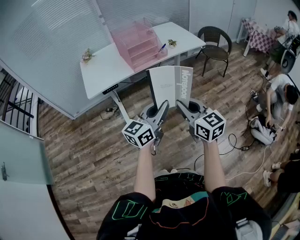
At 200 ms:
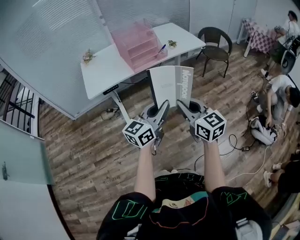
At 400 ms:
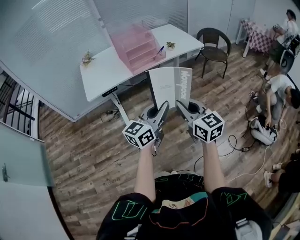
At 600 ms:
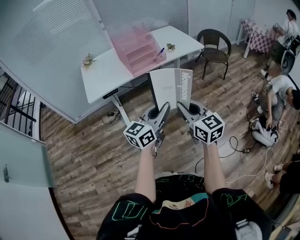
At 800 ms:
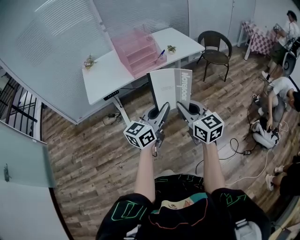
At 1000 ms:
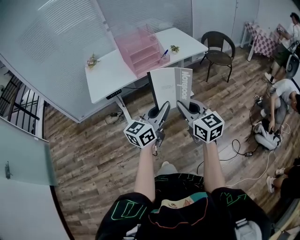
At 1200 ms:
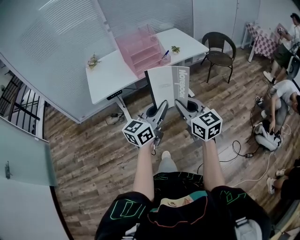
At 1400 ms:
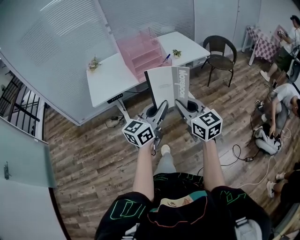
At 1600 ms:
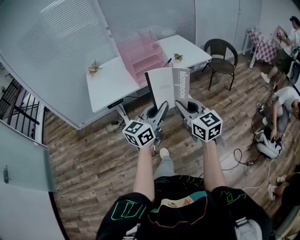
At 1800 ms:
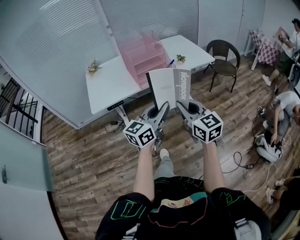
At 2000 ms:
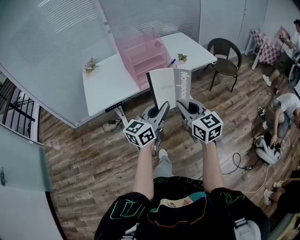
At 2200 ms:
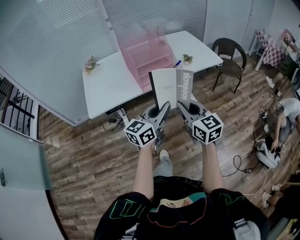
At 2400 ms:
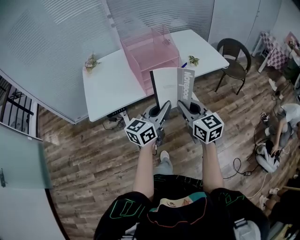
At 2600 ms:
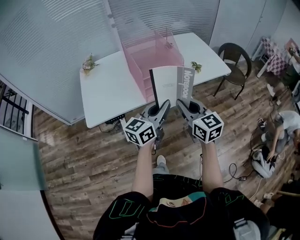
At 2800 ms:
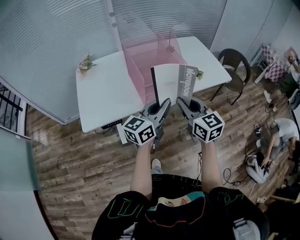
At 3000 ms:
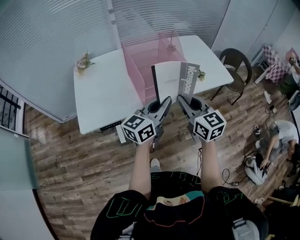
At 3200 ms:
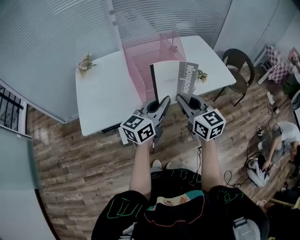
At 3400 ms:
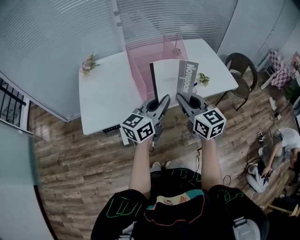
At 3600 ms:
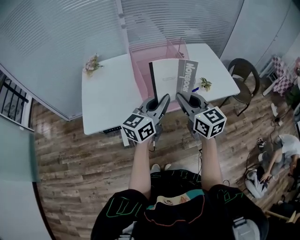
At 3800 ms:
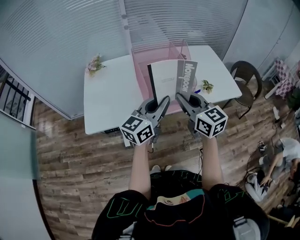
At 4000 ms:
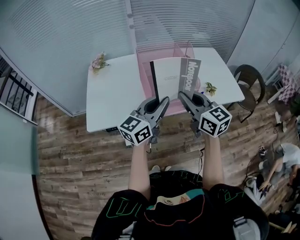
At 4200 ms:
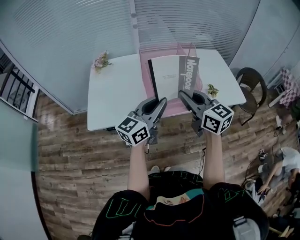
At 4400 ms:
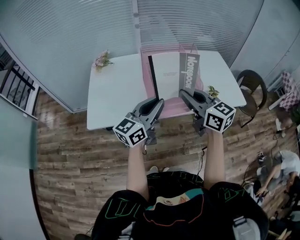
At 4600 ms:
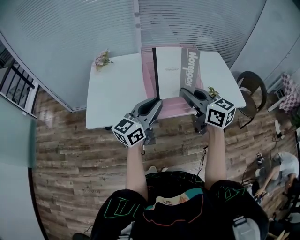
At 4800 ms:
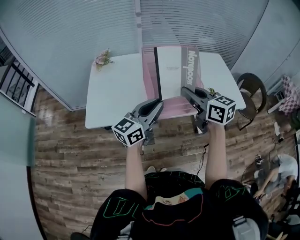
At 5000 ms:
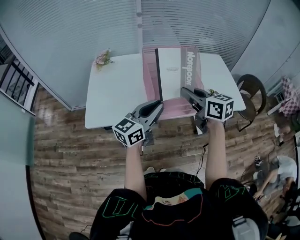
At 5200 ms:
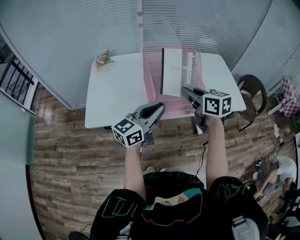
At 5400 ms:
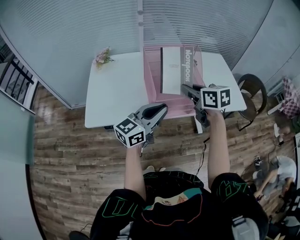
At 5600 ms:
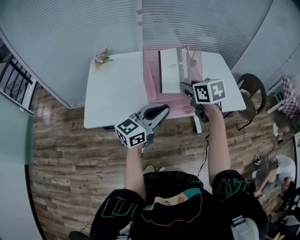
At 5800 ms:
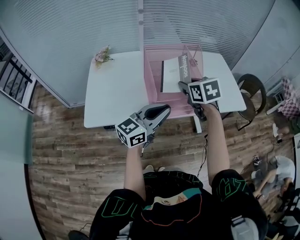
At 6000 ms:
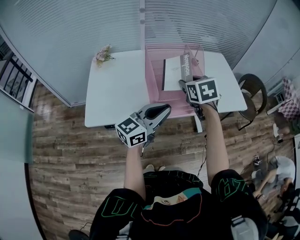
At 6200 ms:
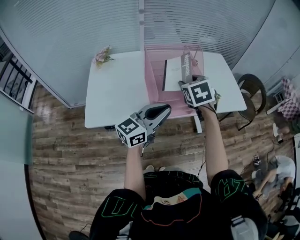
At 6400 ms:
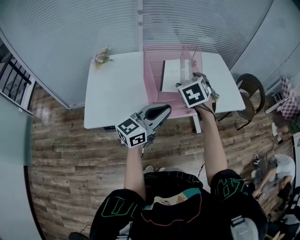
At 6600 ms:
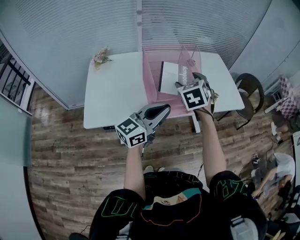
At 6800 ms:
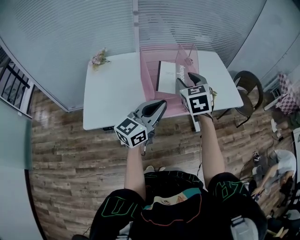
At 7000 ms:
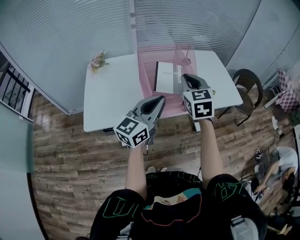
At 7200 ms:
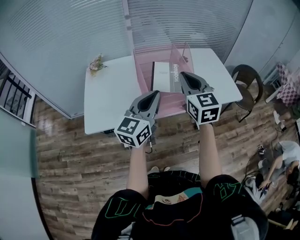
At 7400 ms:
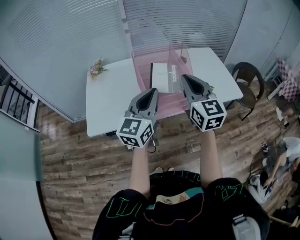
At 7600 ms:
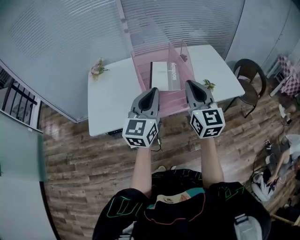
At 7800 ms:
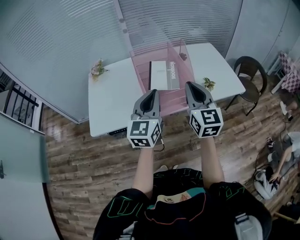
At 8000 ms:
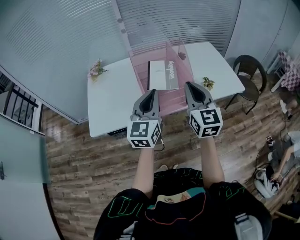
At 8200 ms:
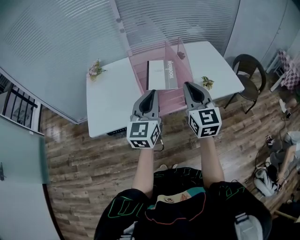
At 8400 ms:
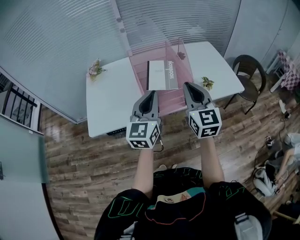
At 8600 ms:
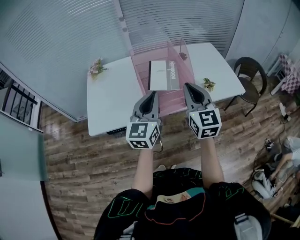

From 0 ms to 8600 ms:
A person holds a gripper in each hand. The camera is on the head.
From 0 ms to 1400 ms: The grippers stay close to where they were, moving slightly.
From 1400 ms to 2800 ms: The two grippers go some 35 cm forward.
From 2800 ms to 4400 ms: The left gripper shifts about 10 cm forward and to the left, while the right gripper goes about 10 cm forward and upward, and turns by some 20 degrees.
From 4400 ms to 5800 ms: The right gripper heads forward and downward, covering approximately 10 cm, and tilts its fingers about 30 degrees downward.
From 5800 ms to 7200 ms: The right gripper moves upward, approximately 10 cm, tilts its fingers about 30 degrees upward, and closes up. The left gripper moves upward, about 5 cm.
From 7200 ms to 8600 ms: The right gripper changes place by some 5 cm.

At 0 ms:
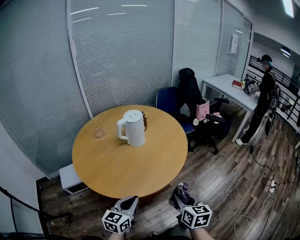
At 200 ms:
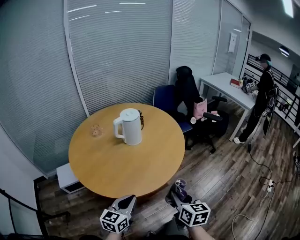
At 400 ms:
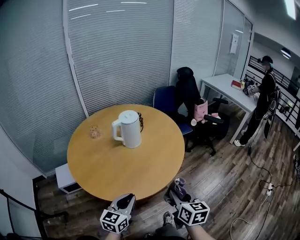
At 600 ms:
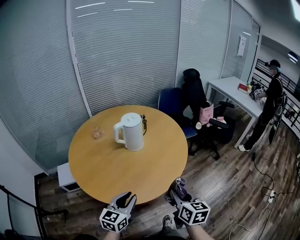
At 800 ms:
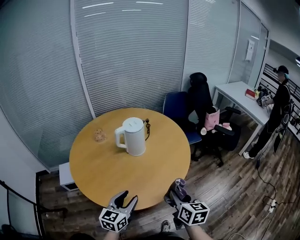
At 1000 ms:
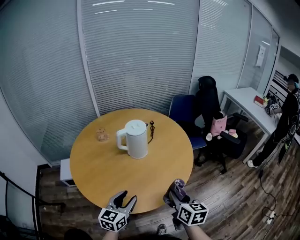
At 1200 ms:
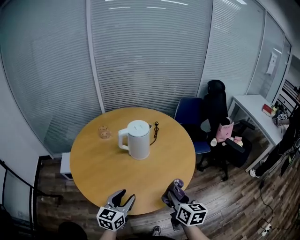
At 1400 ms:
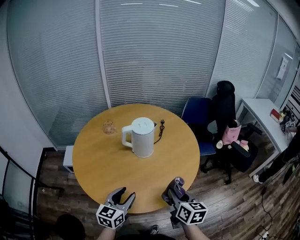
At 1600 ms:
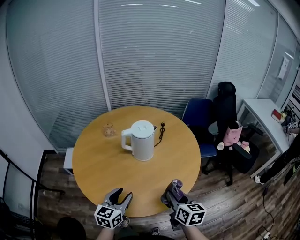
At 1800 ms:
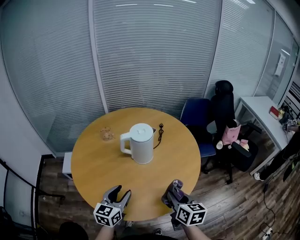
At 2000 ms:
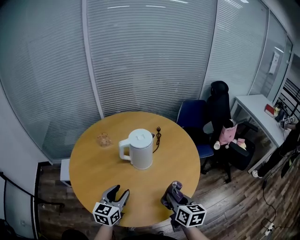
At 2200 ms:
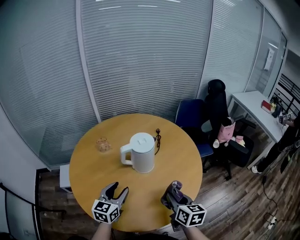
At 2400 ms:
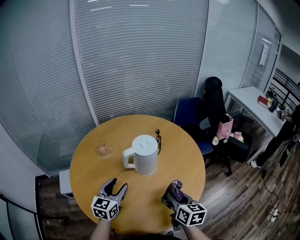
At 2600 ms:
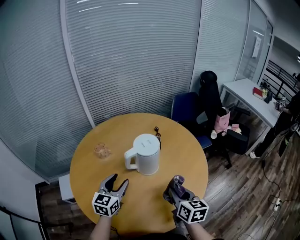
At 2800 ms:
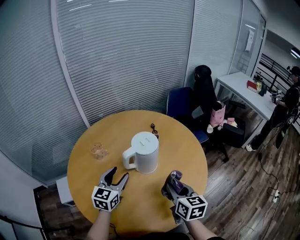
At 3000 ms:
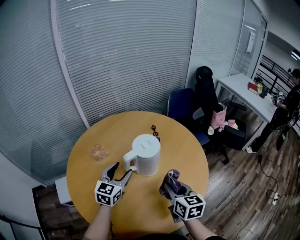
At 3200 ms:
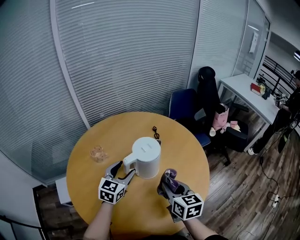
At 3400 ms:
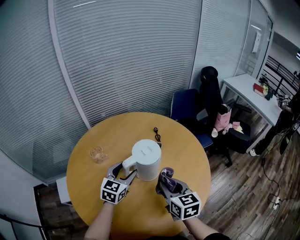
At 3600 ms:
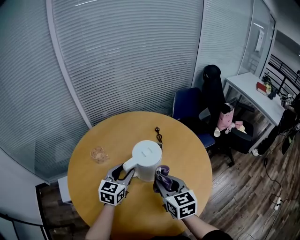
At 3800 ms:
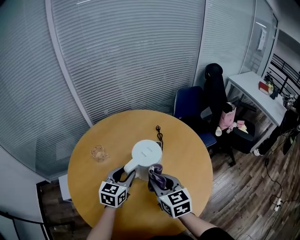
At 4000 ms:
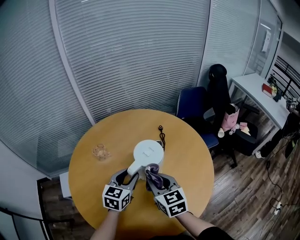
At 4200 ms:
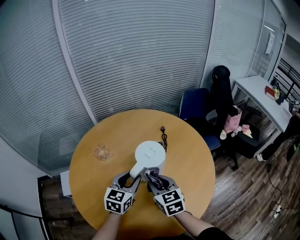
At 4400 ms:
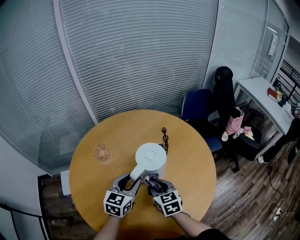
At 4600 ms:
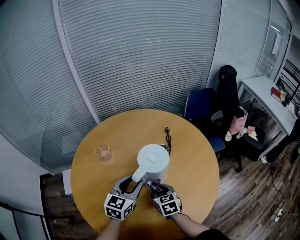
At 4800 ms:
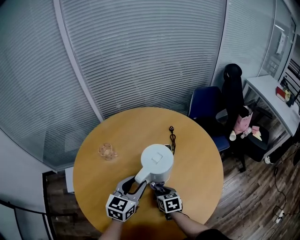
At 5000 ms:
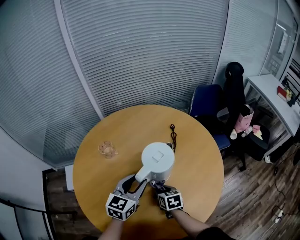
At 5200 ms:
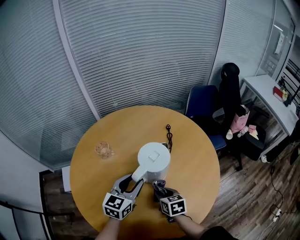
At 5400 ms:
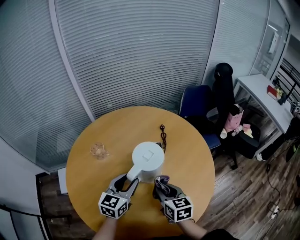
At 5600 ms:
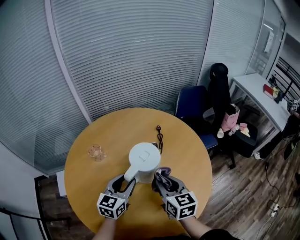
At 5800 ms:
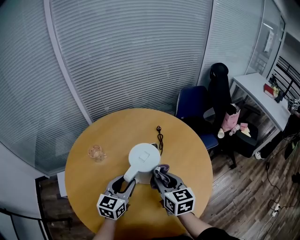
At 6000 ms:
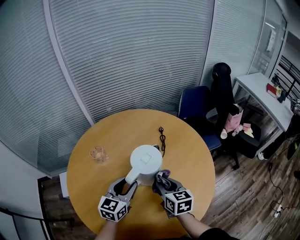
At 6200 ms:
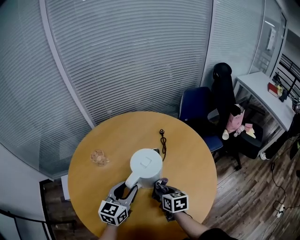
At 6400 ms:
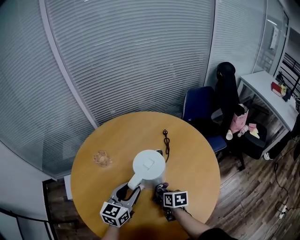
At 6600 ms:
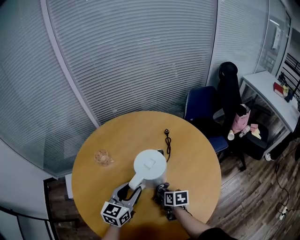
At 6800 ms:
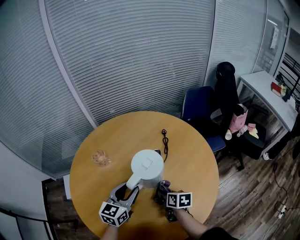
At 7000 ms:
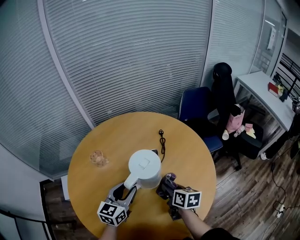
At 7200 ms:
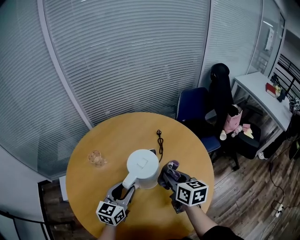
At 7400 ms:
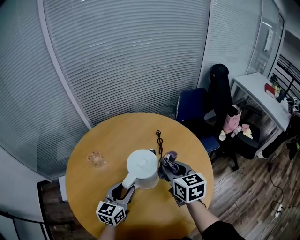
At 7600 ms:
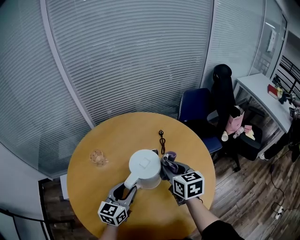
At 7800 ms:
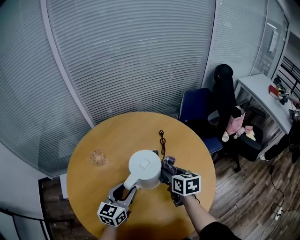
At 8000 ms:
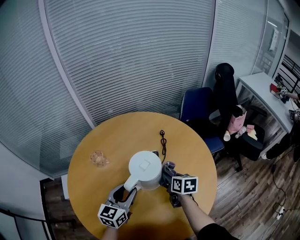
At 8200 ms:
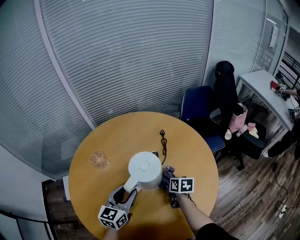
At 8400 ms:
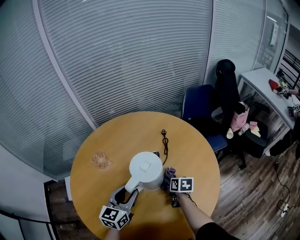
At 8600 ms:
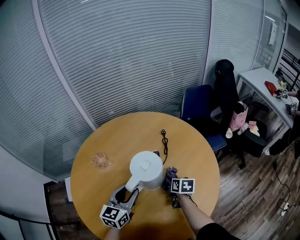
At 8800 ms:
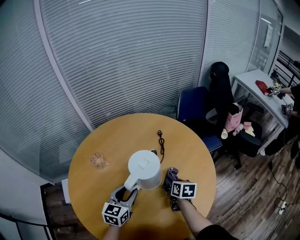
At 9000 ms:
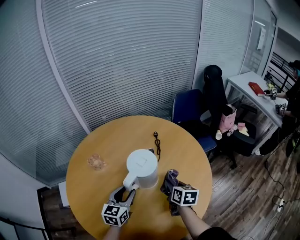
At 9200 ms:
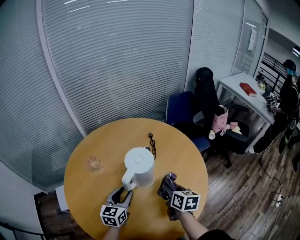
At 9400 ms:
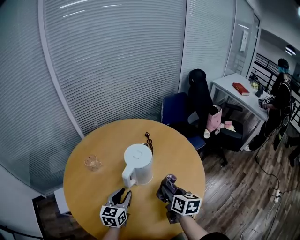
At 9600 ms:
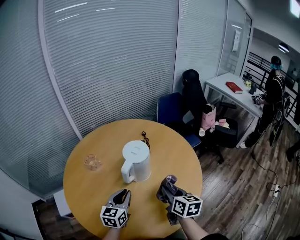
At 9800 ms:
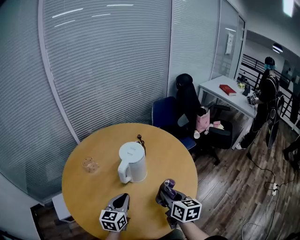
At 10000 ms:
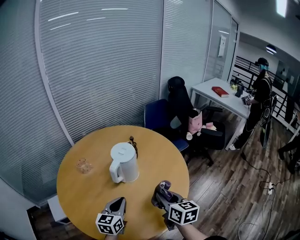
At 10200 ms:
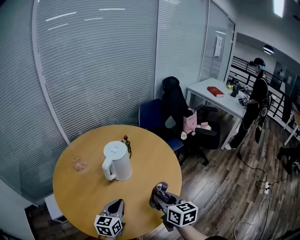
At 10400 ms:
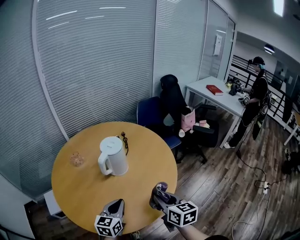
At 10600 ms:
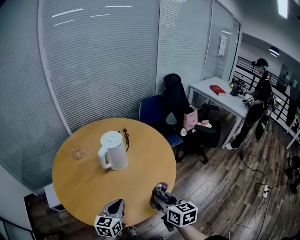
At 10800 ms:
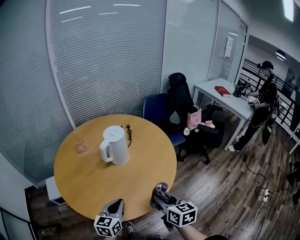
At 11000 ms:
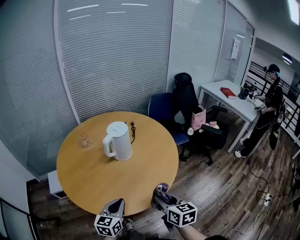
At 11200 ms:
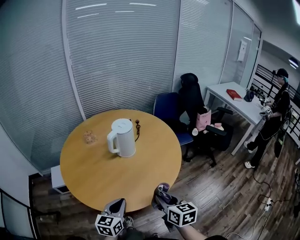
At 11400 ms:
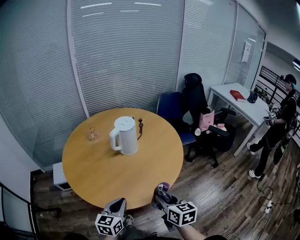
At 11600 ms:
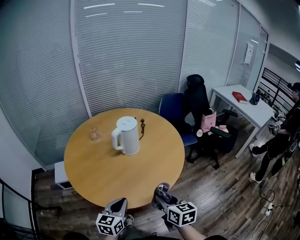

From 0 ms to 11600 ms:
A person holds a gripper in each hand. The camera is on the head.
From 0 ms to 1400 ms: Both grippers move forward, approximately 20 cm. The right gripper changes its angle by about 20 degrees, while the left gripper turns by about 20 degrees, and opens up.
From 1400 ms to 2800 ms: The left gripper is displaced forward and to the left by approximately 25 cm. The right gripper is displaced to the left and forward by about 15 cm.
From 2800 ms to 4400 ms: The right gripper travels forward, to the left and downward by approximately 15 cm, and rotates about 30 degrees. Meanwhile the left gripper travels to the right by roughly 5 cm.
From 4400 ms to 5800 ms: The right gripper goes roughly 5 cm to the right, and reaches approximately 10 cm downward, then returns.
From 5800 ms to 7200 ms: The right gripper goes about 5 cm to the right, and moves about 20 cm downward and comes back.
From 7200 ms to 8800 ms: The right gripper goes up and down, approximately 25 cm each way, reversing 2 times, and rotates some 20 degrees.
From 8800 ms to 10200 ms: The right gripper heads backward and upward, covering approximately 30 cm, and swivels about 20 degrees. Meanwhile the left gripper shifts some 15 cm backward, and closes its fingers.
From 10200 ms to 11600 ms: Both grippers move backward, approximately 15 cm.

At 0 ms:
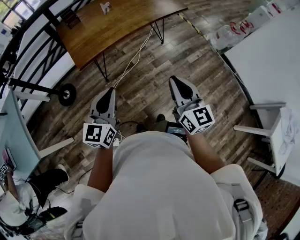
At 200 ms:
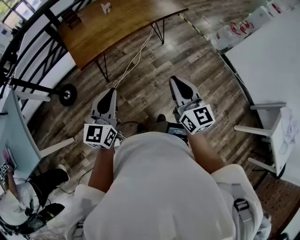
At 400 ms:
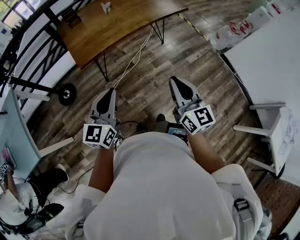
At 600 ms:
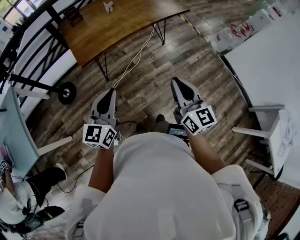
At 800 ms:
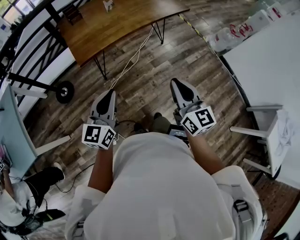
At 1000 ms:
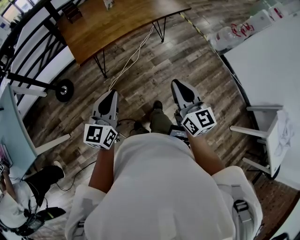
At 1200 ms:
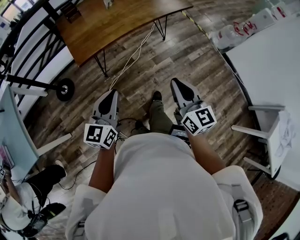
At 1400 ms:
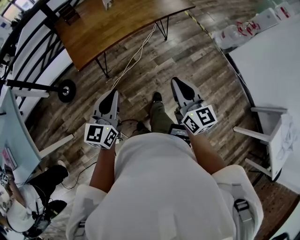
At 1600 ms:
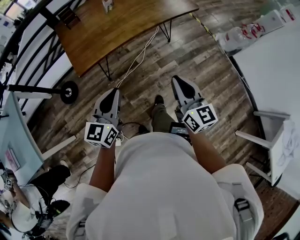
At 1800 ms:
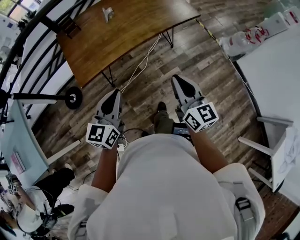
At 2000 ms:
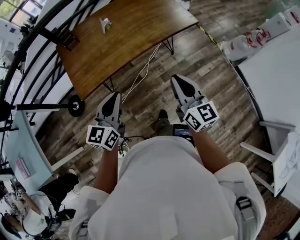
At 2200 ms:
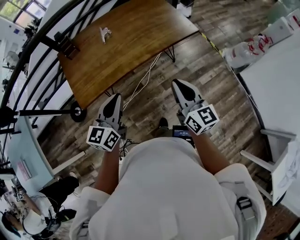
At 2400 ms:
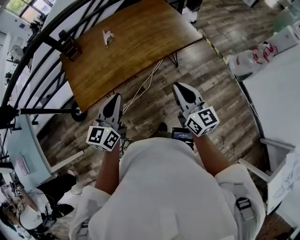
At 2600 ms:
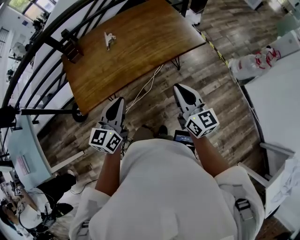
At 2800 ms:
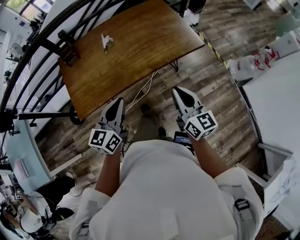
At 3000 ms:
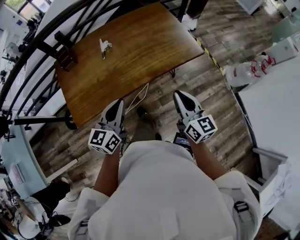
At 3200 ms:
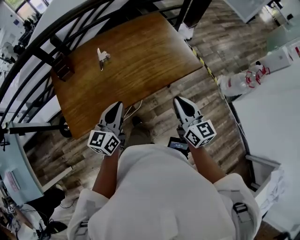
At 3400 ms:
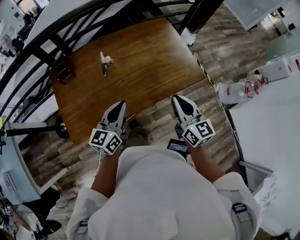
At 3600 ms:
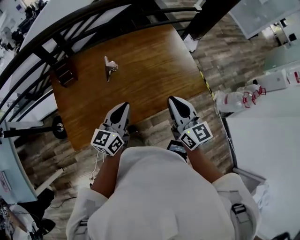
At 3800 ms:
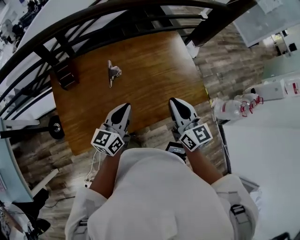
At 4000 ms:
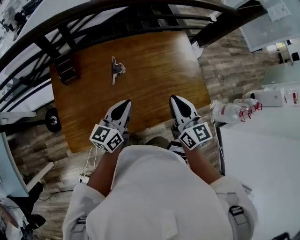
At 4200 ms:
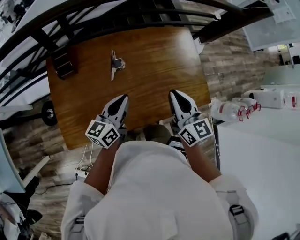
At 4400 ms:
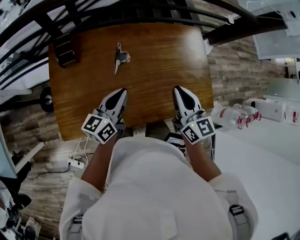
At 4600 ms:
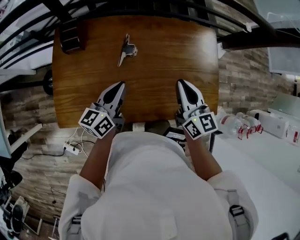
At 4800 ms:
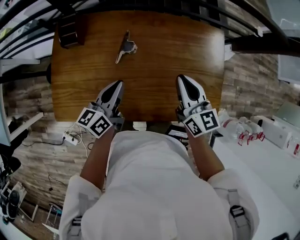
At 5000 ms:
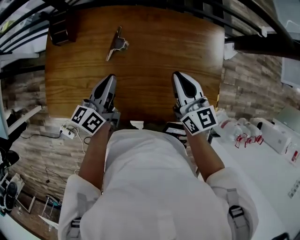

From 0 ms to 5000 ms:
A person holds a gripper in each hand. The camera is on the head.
From 0 ms to 1600 ms: The two grippers go approximately 10 cm forward.
From 1600 ms to 3400 ms: The pair of grippers is taken forward, roughly 50 cm.
From 3400 ms to 5000 ms: The left gripper changes place by roughly 25 cm, and rotates roughly 40 degrees; the right gripper moves approximately 35 cm, and turns by some 30 degrees.
